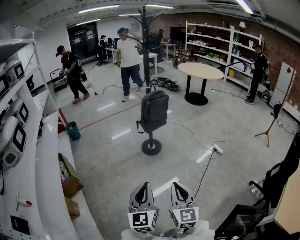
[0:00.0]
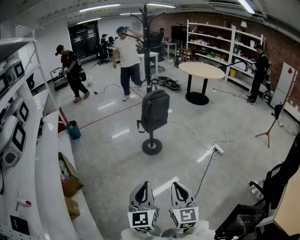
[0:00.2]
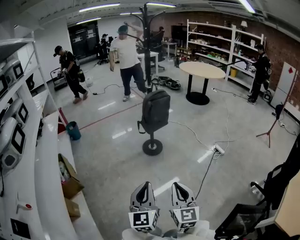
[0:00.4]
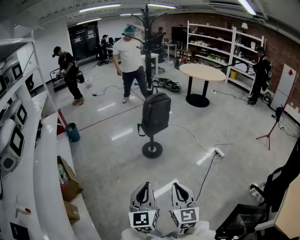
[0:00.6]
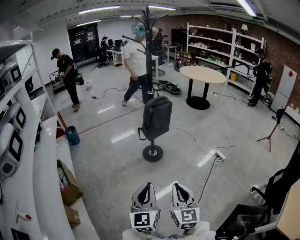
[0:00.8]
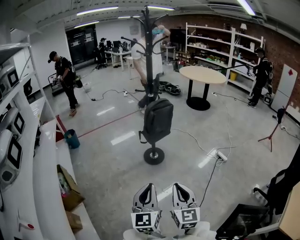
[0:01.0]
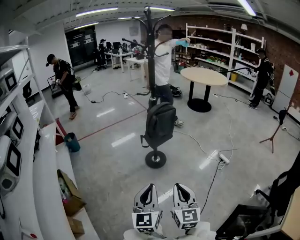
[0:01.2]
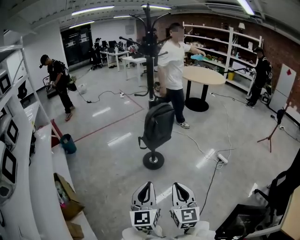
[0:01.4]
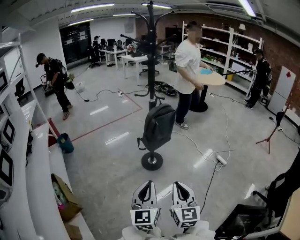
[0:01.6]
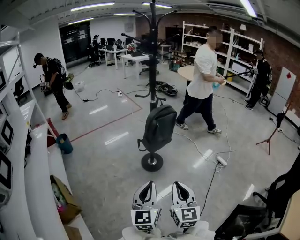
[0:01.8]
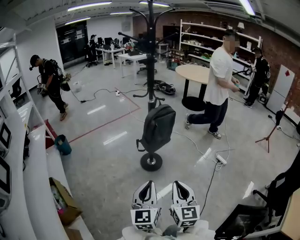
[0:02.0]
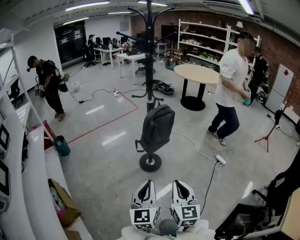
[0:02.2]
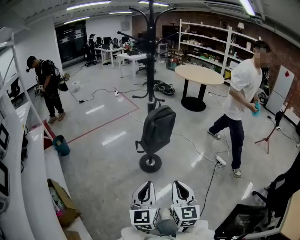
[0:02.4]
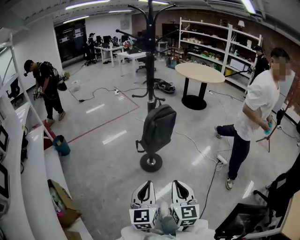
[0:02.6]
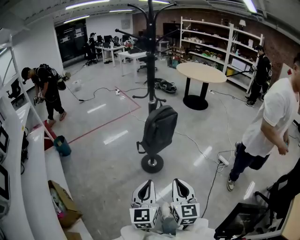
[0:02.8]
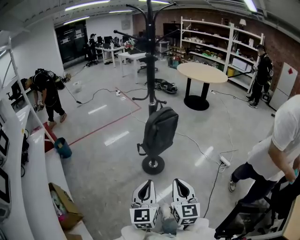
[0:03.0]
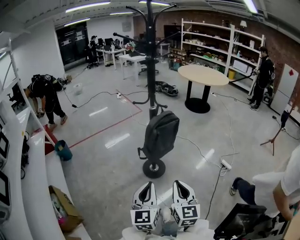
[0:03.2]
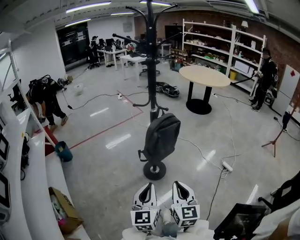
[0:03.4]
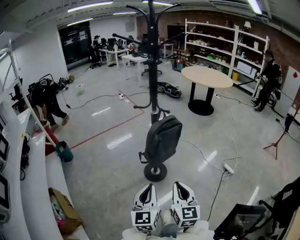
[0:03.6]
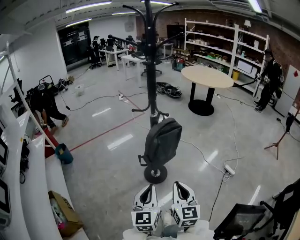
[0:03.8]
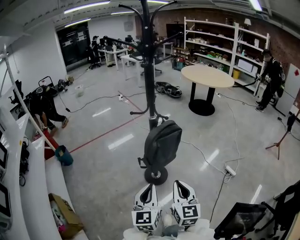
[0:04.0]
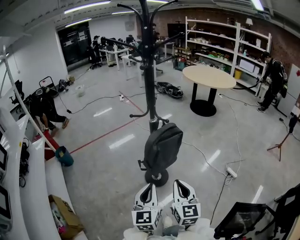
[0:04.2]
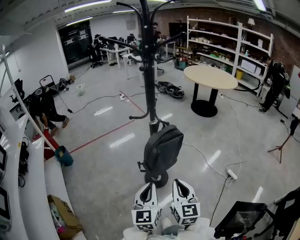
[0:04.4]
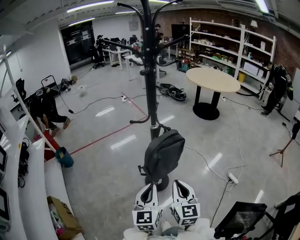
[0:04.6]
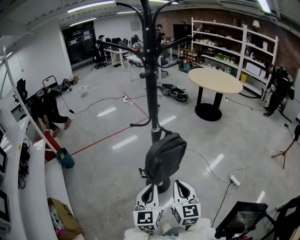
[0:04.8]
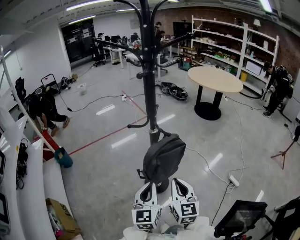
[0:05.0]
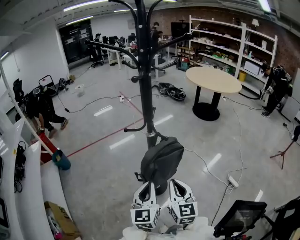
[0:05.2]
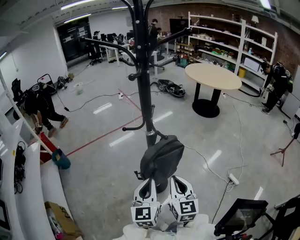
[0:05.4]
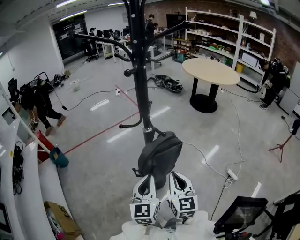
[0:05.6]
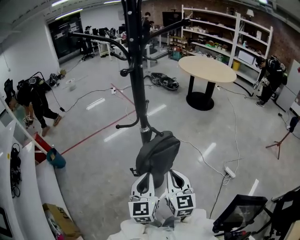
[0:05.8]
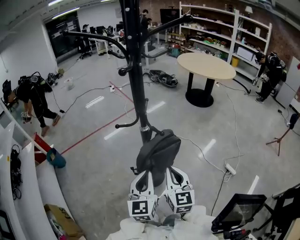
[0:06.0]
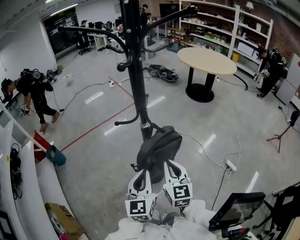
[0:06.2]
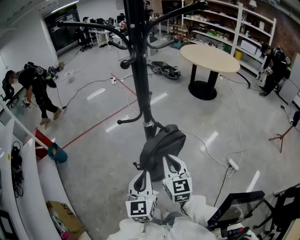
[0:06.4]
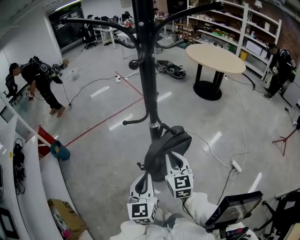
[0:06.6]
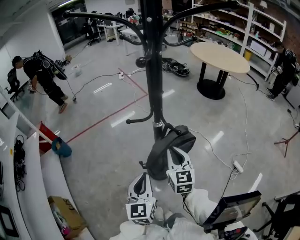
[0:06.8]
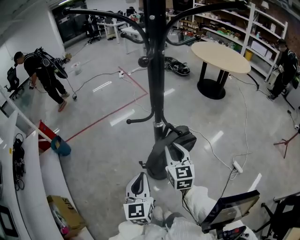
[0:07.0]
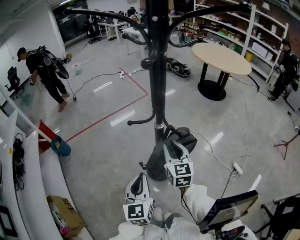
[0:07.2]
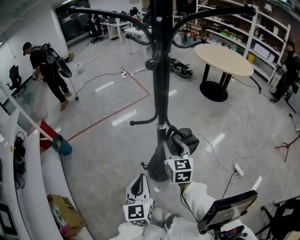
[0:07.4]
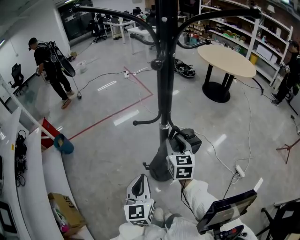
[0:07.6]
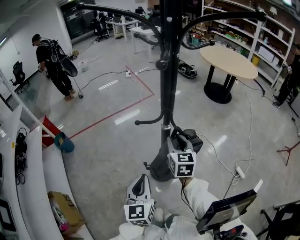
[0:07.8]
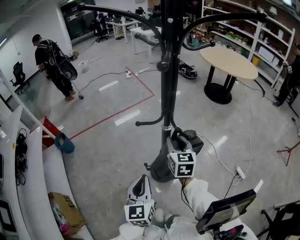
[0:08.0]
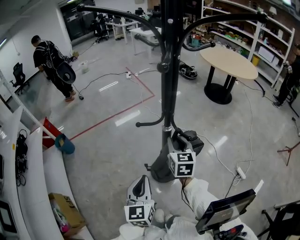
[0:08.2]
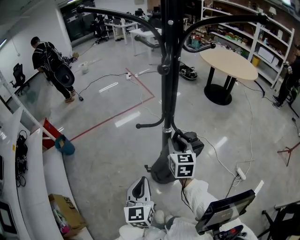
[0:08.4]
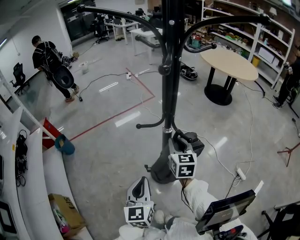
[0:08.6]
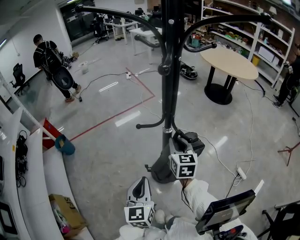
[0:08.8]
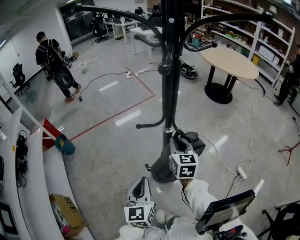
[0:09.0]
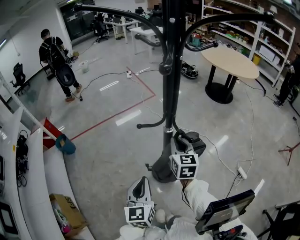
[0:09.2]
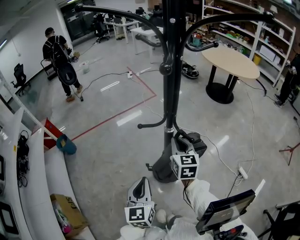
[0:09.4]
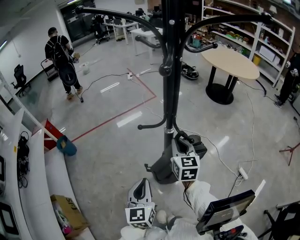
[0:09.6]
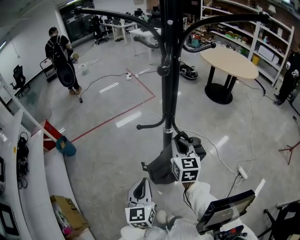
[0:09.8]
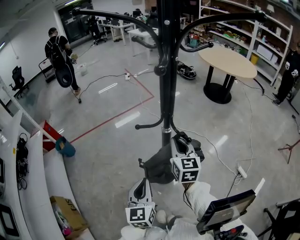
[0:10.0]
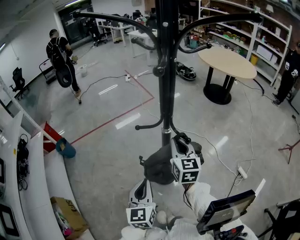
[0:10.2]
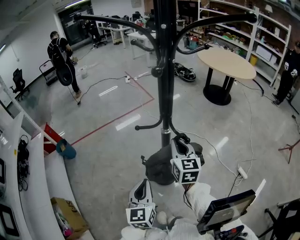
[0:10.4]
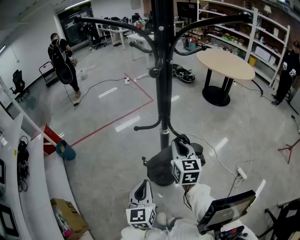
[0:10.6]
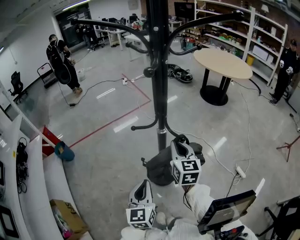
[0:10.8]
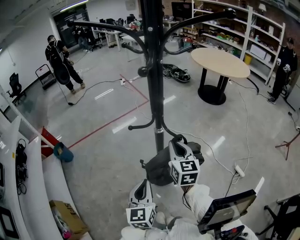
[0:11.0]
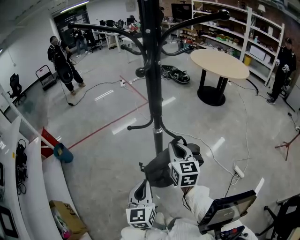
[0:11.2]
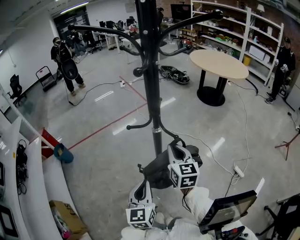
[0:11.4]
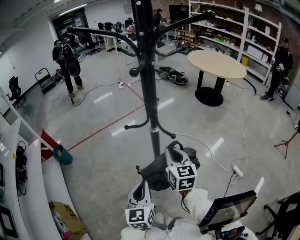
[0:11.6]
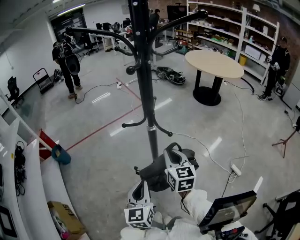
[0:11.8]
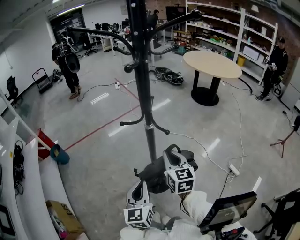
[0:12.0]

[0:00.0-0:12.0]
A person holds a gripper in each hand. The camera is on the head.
0:00.0 to 0:01.6: Both grippers move forward, approximately 20 cm.
0:01.6 to 0:03.0: Both grippers move forward, some 10 cm.
0:03.0 to 0:04.4: The grippers both shift forward by about 15 cm.
0:04.4 to 0:06.0: Both grippers travel together forward, some 15 cm.
0:06.0 to 0:07.6: The left gripper goes approximately 10 cm to the left. The right gripper goes some 15 cm forward, and opens its fingers.
0:07.6 to 0:10.4: There are only small adjustments of the grippers.
0:10.4 to 0:12.0: The left gripper changes place by roughly 5 cm. Meanwhile the right gripper goes some 10 cm backward.

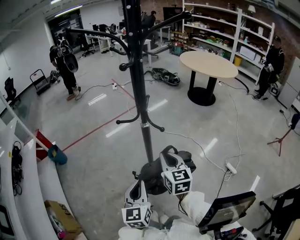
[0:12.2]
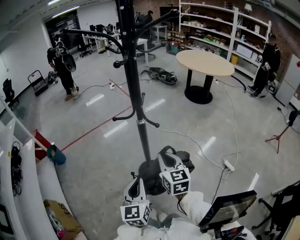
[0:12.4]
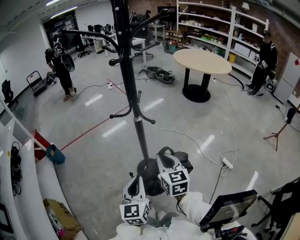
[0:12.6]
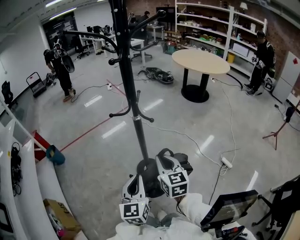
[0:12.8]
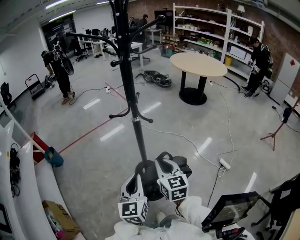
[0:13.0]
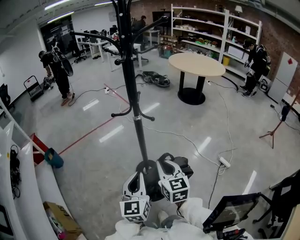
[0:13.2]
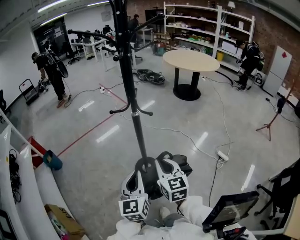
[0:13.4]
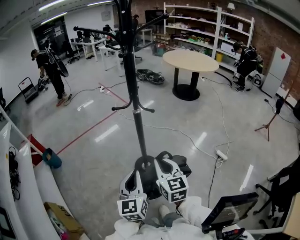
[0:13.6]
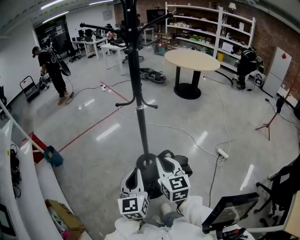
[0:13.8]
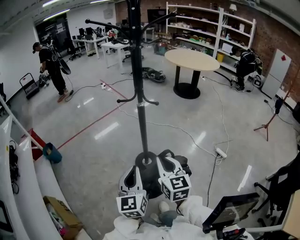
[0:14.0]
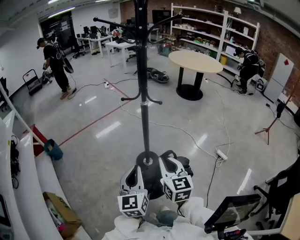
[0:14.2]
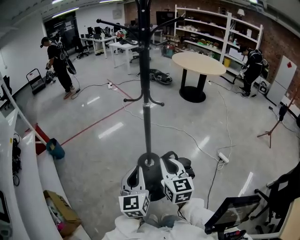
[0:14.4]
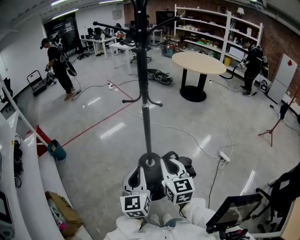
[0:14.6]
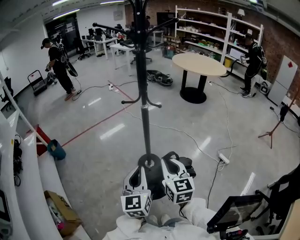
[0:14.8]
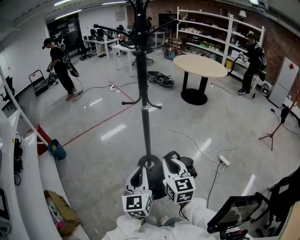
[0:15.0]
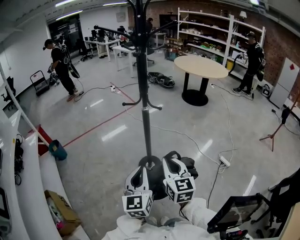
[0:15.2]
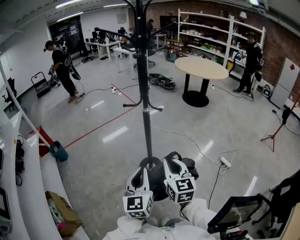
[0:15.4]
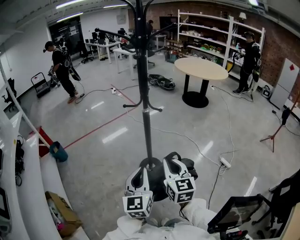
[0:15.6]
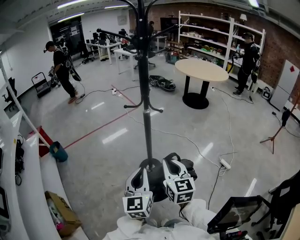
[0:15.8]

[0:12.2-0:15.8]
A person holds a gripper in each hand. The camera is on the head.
0:12.2 to 0:14.0: The right gripper travels backward by roughly 15 cm. Meanwhile the left gripper goes approximately 10 cm backward.
0:14.0 to 0:15.8: The grippers stay close to where they were, moving slightly.

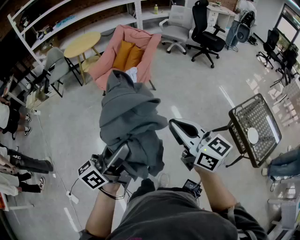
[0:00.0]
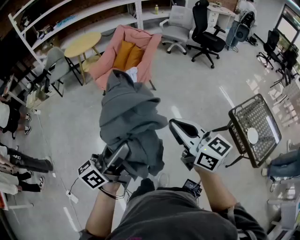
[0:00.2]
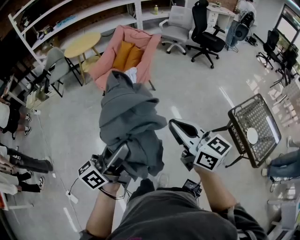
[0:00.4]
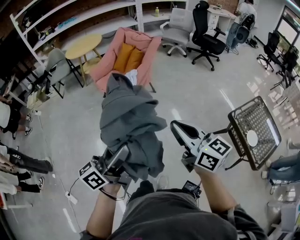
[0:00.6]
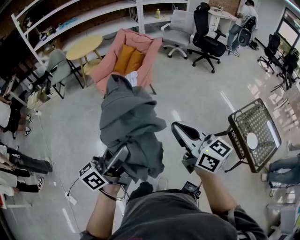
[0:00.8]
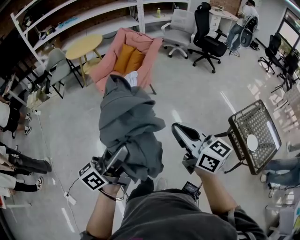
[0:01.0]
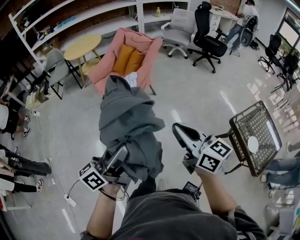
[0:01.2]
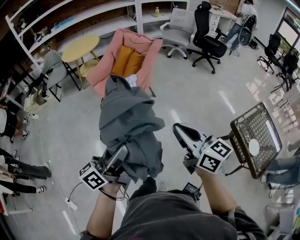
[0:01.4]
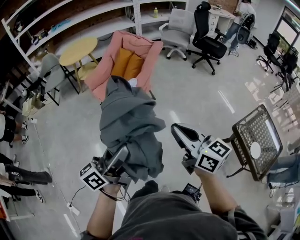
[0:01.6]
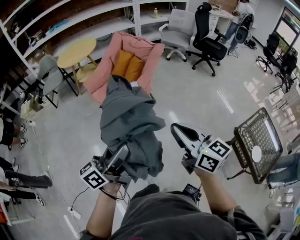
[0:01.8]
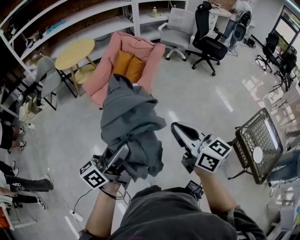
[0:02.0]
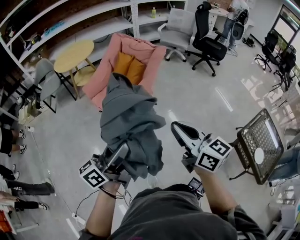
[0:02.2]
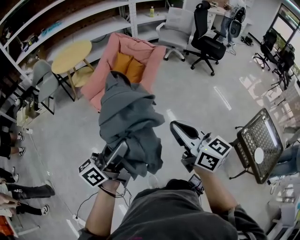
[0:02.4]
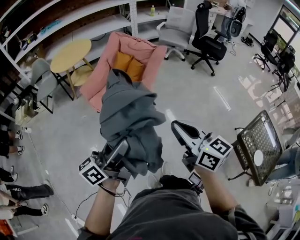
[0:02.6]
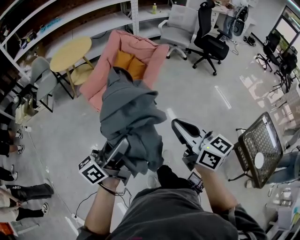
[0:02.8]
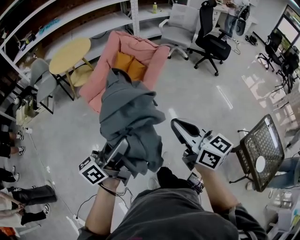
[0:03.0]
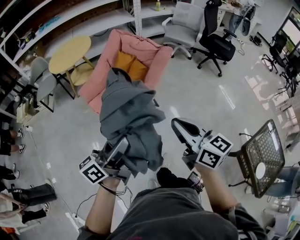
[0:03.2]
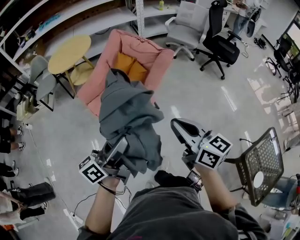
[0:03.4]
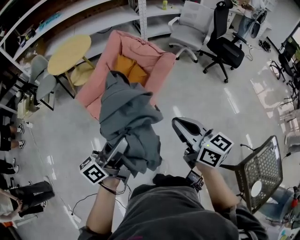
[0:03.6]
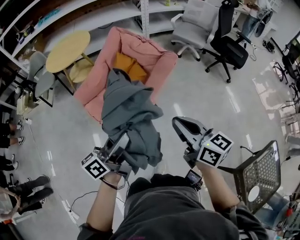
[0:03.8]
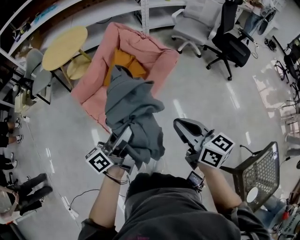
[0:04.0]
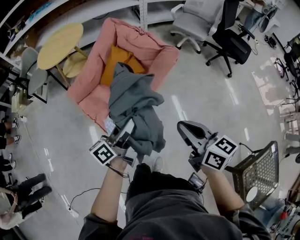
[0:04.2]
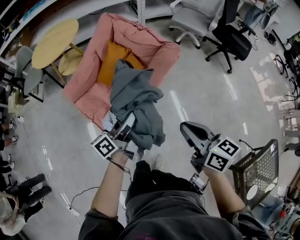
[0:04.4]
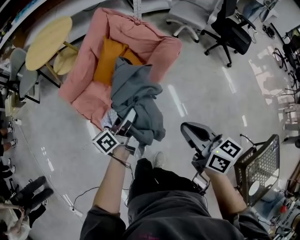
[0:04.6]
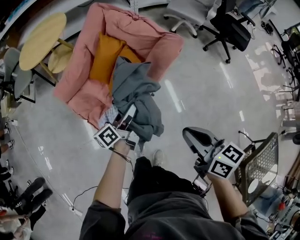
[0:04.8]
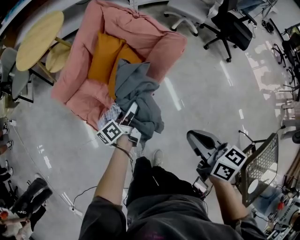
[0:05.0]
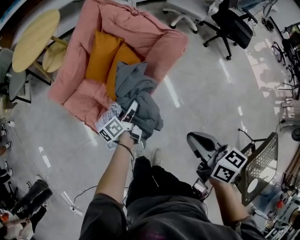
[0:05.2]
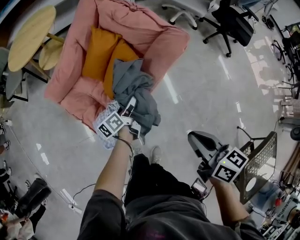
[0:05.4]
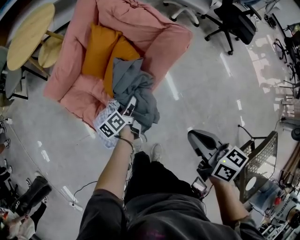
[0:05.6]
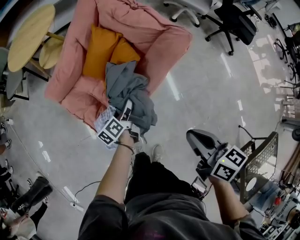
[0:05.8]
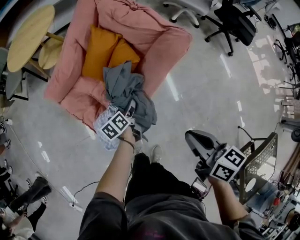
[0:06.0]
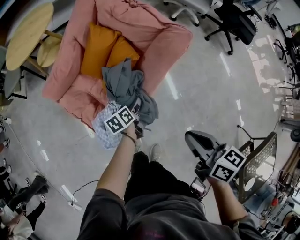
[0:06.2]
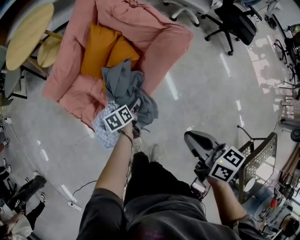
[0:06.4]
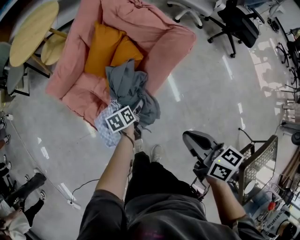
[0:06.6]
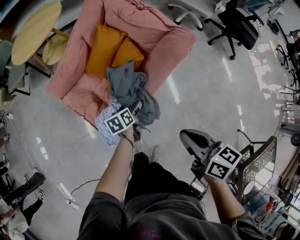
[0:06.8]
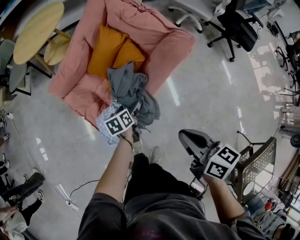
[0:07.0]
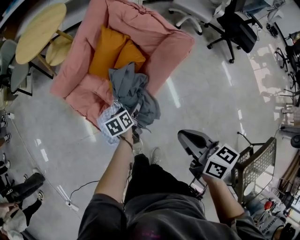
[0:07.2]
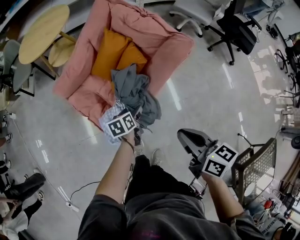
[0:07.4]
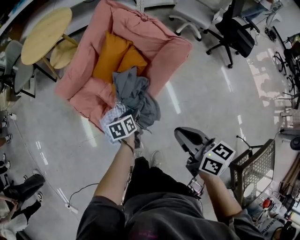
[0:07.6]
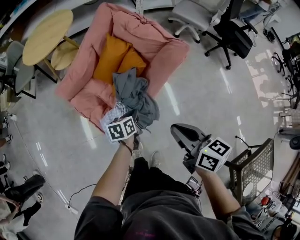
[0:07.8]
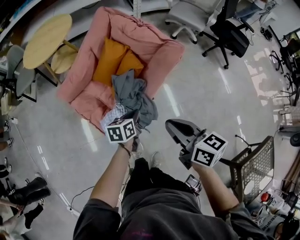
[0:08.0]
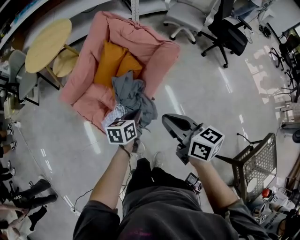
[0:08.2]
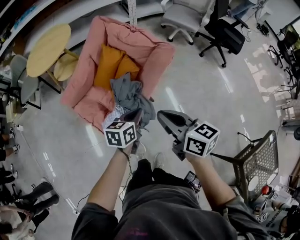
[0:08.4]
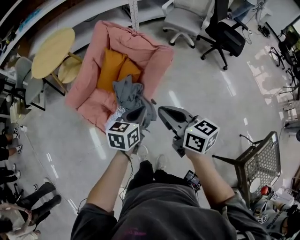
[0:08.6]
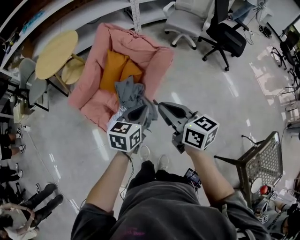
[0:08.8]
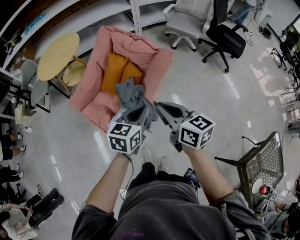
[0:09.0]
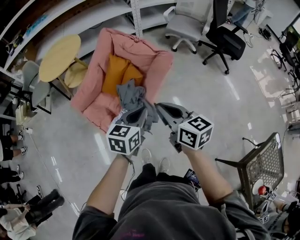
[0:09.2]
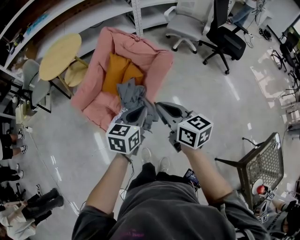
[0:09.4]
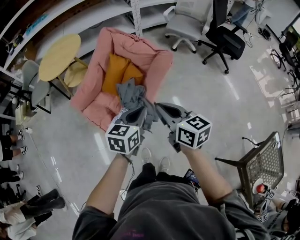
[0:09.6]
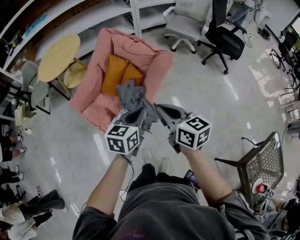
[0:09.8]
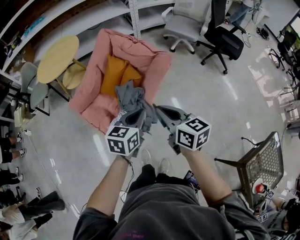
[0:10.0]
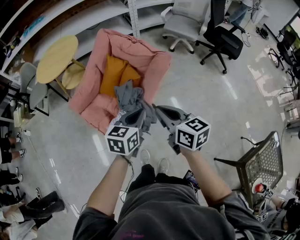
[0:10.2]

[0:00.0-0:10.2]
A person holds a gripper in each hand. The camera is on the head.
0:00.0 to 0:01.4: The grippers both shift forward by about 10 cm.
0:01.4 to 0:03.0: Both grippers move forward, some 30 cm.
0:03.0 to 0:04.4: The right gripper moves forward, downward and to the right, approximately 30 cm, while the left gripper moves forward and downward, some 40 cm.
0:04.4 to 0:05.8: The right gripper moves downward and forward, some 10 cm; the left gripper heads downward and forward, covering some 25 cm, and swivels approximately 30 degrees.
0:05.8 to 0:07.2: The left gripper swivels some 20 degrees.
0:07.2 to 0:08.8: The left gripper travels upward by roughly 30 cm, turns by approximately 40 degrees, and closes, while the right gripper goes roughly 15 cm upward.
0:08.8 to 0:10.2: The grippers make only small movements.
